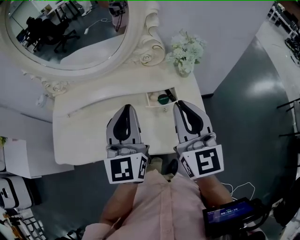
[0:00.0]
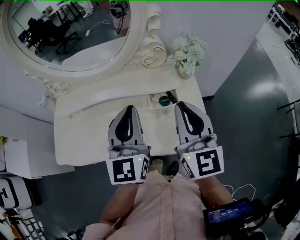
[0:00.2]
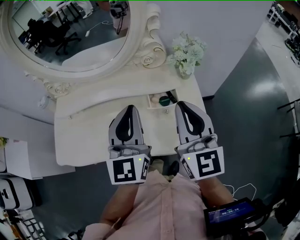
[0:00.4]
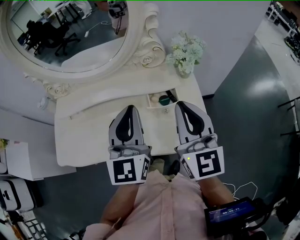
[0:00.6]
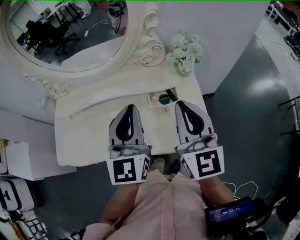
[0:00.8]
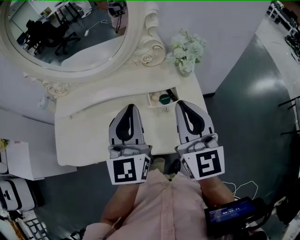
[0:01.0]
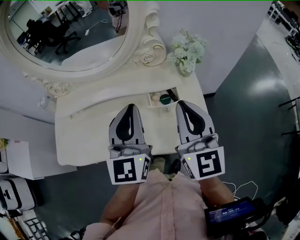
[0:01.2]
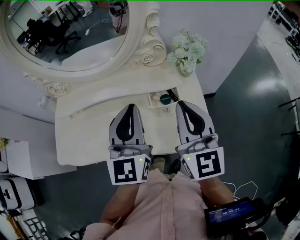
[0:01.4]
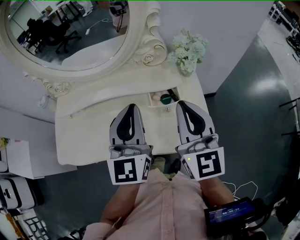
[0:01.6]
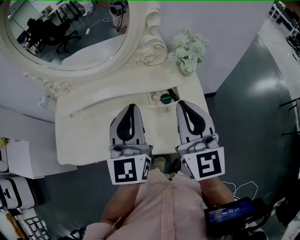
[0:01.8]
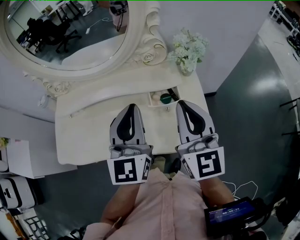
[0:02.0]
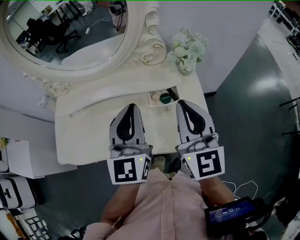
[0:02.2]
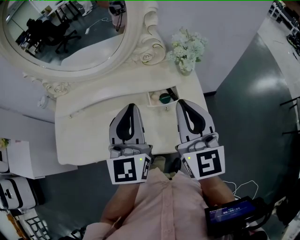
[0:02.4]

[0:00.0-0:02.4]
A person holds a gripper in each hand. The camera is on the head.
0:00.0 to 0:01.2: There are only small adjustments of the grippers.
0:01.2 to 0:02.4: The two grippers keep their place.

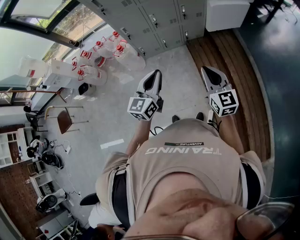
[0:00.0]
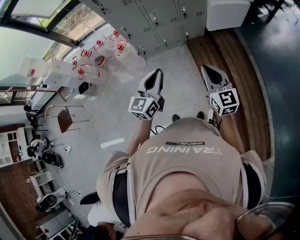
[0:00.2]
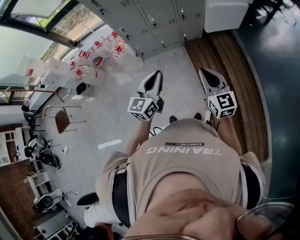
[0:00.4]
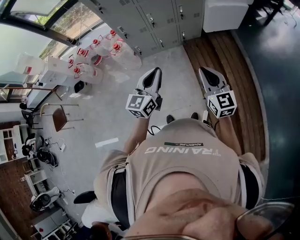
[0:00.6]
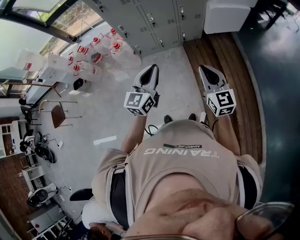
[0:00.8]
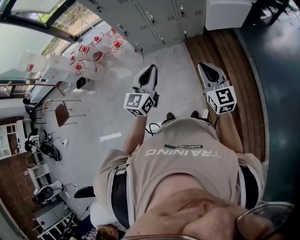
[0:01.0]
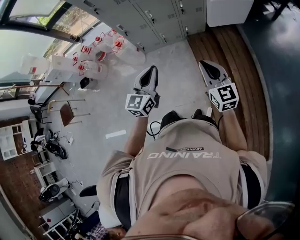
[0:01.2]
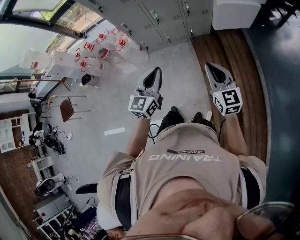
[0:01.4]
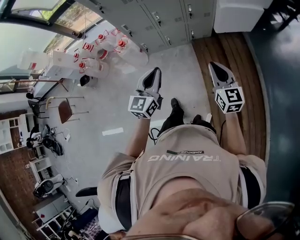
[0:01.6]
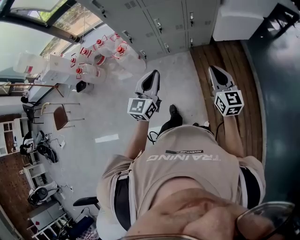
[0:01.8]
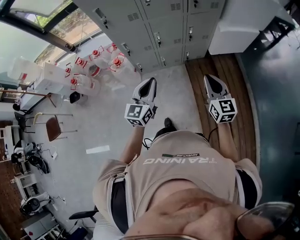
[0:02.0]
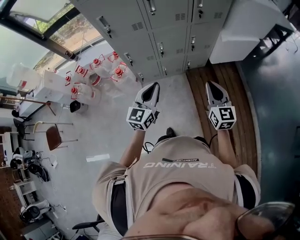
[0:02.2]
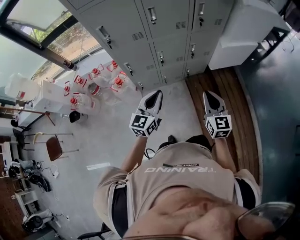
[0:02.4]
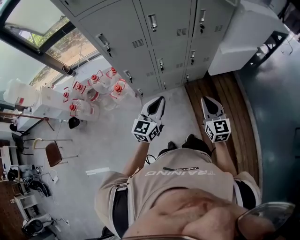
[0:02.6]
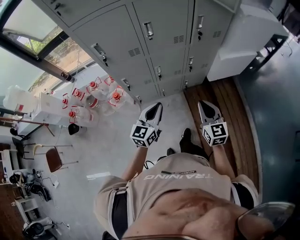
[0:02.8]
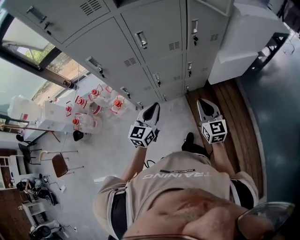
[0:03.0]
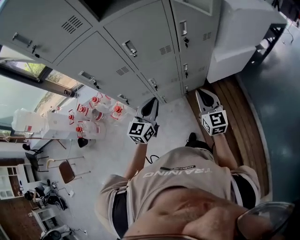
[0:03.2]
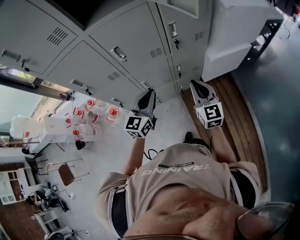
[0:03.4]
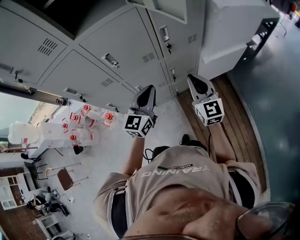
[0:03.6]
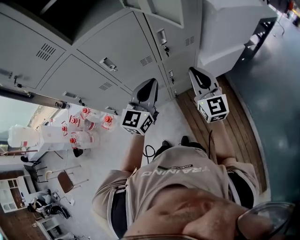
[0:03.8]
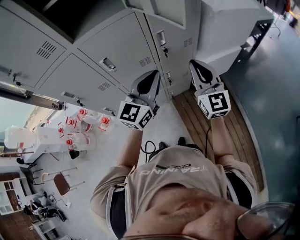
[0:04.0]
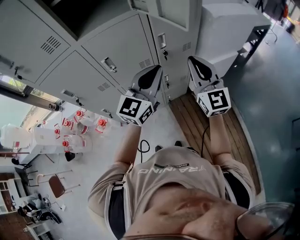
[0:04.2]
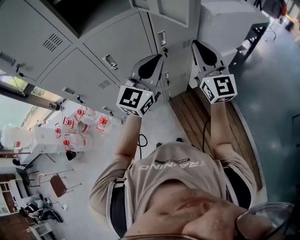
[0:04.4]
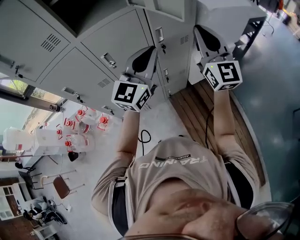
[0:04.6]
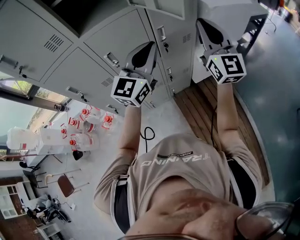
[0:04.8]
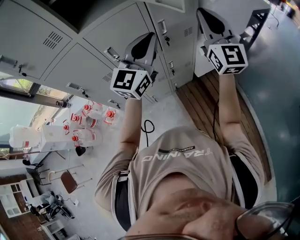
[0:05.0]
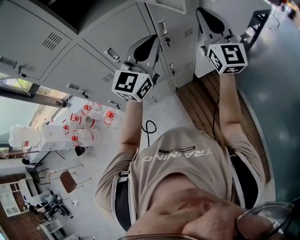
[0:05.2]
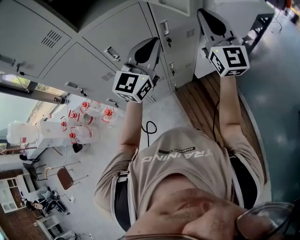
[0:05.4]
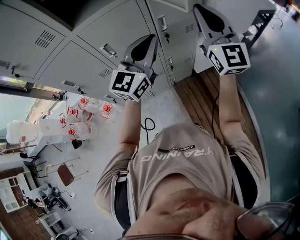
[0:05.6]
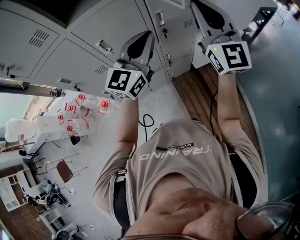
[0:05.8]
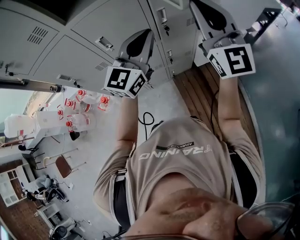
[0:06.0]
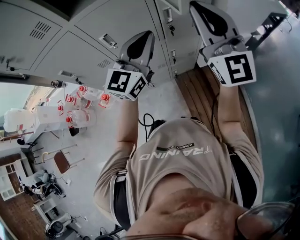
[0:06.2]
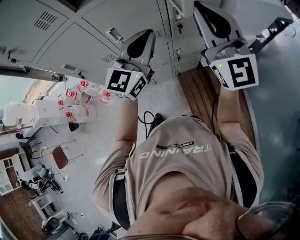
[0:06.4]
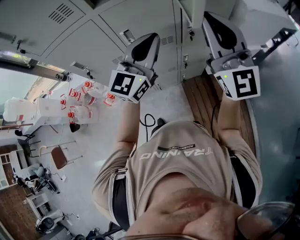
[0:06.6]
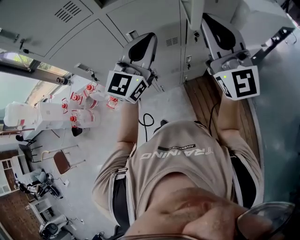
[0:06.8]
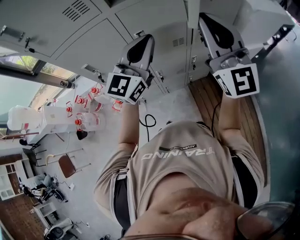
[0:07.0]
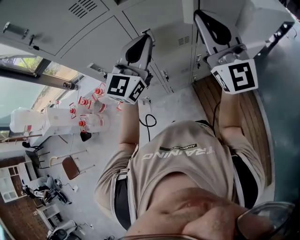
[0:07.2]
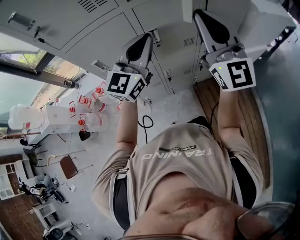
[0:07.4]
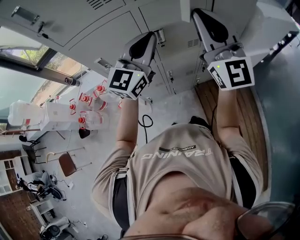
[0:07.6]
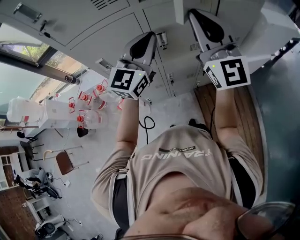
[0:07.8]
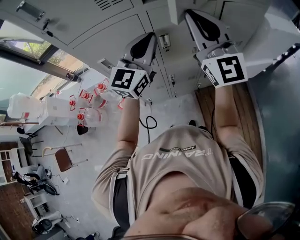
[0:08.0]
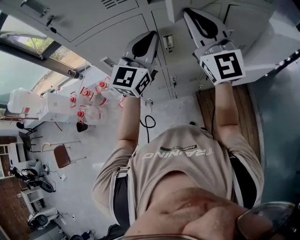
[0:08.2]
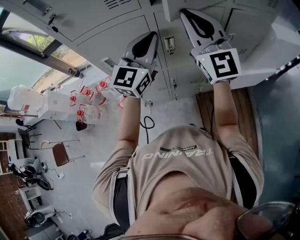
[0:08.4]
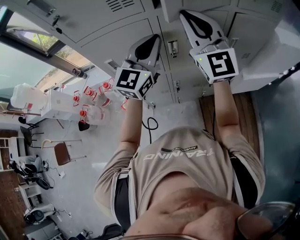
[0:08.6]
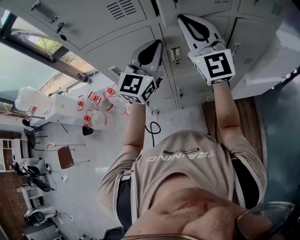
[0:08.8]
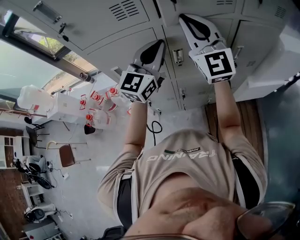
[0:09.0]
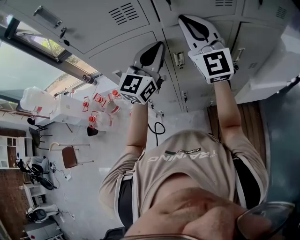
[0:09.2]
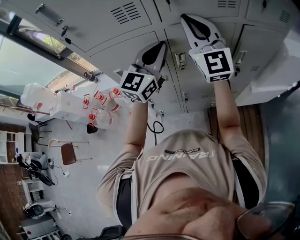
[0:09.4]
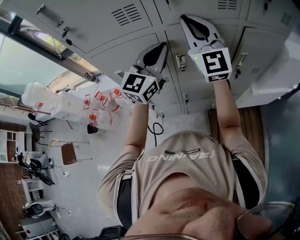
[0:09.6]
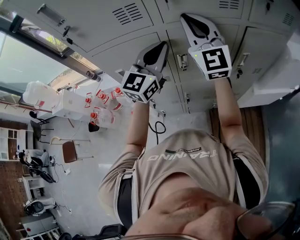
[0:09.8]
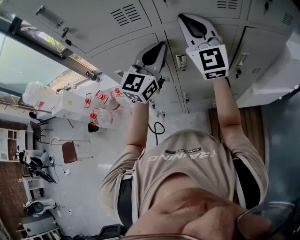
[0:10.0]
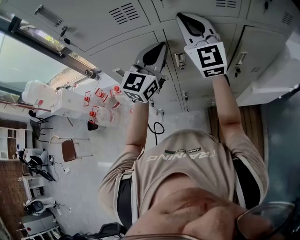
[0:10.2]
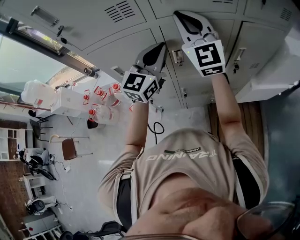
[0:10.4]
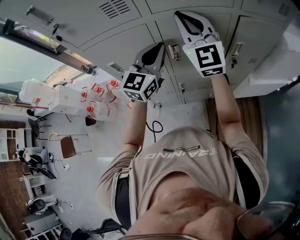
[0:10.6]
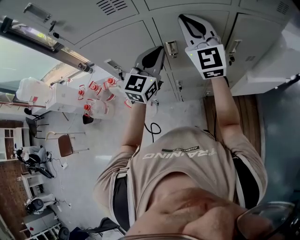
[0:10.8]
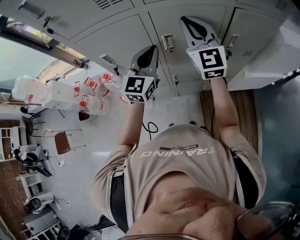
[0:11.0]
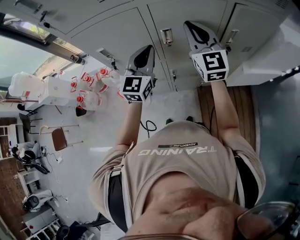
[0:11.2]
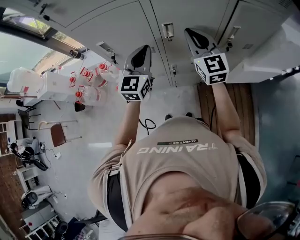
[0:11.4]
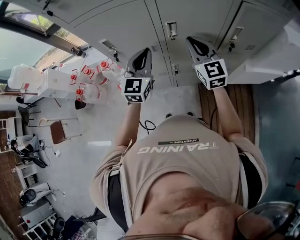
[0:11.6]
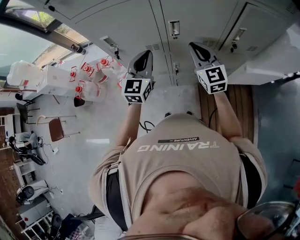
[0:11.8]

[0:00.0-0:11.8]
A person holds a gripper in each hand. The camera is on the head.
0:00.0 to 0:01.4: The left gripper shifts some 5 cm to the right. The right gripper travels to the right and forward by approximately 10 cm.
0:01.4 to 0:03.0: The two grippers go some 30 cm forward.
0:03.0 to 0:04.4: The left gripper is displaced upward, forward and to the right by approximately 35 cm, and rotates about 30 degrees. Meanwhile the right gripper goes roughly 30 cm upward and forward, and swivels approximately 30 degrees.
0:04.4 to 0:06.0: The right gripper is displaced upward by some 5 cm.
0:06.0 to 0:07.4: The grippers both shift to the left by about 20 cm.
0:07.4 to 0:08.8: The right gripper heads forward and to the left, covering about 15 cm; the left gripper travels forward by some 5 cm.
0:08.8 to 0:10.4: The right gripper moves forward, approximately 5 cm.
0:10.4 to 0:11.8: The left gripper goes some 15 cm downward, to the left and backward; the right gripper moves downward, roughly 25 cm, and turns by roughly 30 degrees.

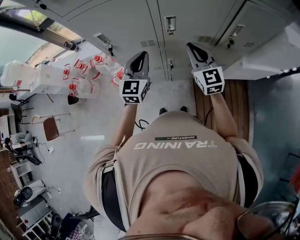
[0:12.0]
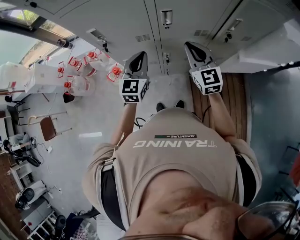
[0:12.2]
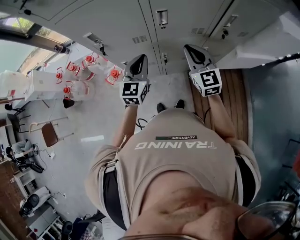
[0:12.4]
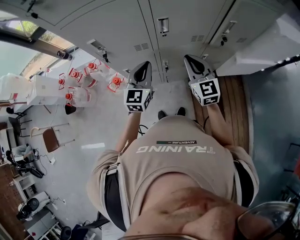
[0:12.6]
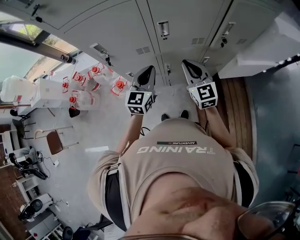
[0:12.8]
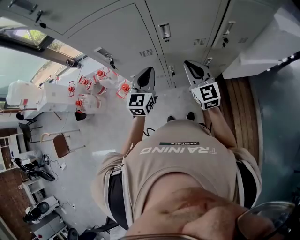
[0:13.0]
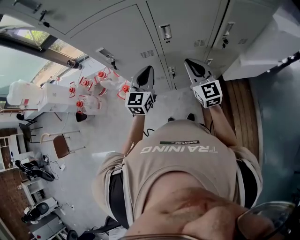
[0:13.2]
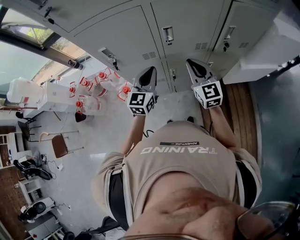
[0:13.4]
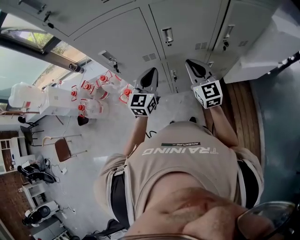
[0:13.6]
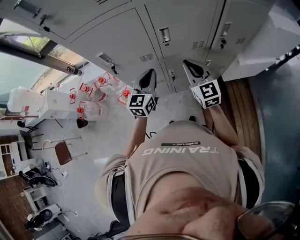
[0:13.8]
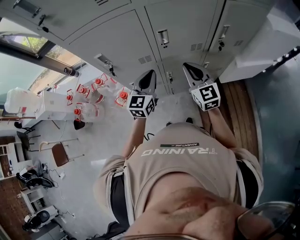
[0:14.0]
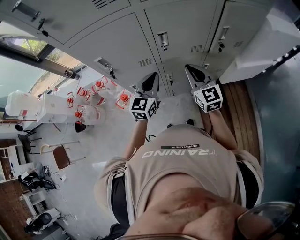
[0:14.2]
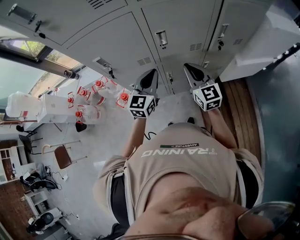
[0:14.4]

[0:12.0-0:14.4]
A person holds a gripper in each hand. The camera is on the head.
0:12.0 to 0:14.4: There are only small adjustments of the grippers.

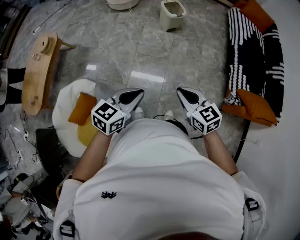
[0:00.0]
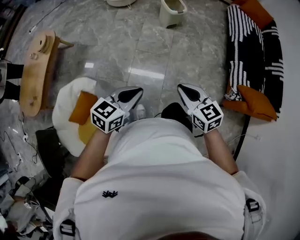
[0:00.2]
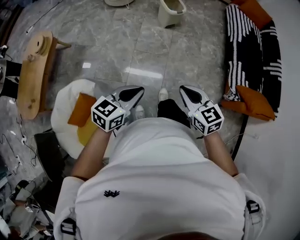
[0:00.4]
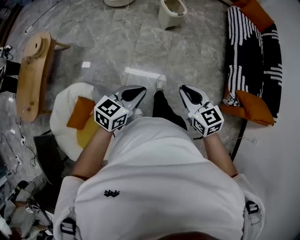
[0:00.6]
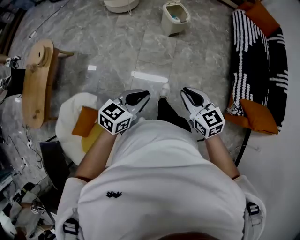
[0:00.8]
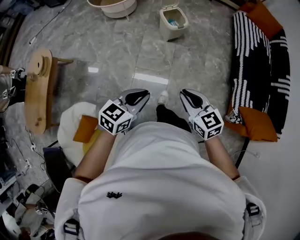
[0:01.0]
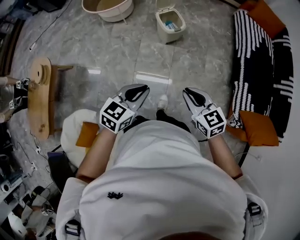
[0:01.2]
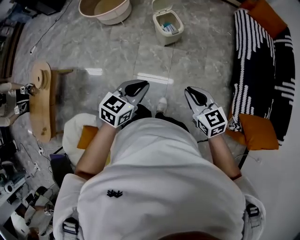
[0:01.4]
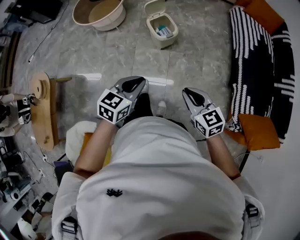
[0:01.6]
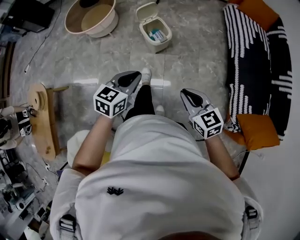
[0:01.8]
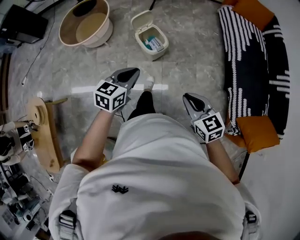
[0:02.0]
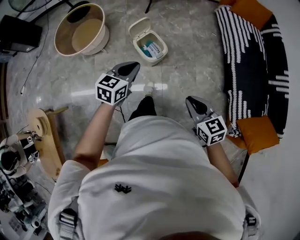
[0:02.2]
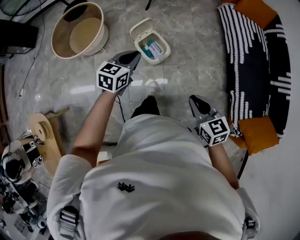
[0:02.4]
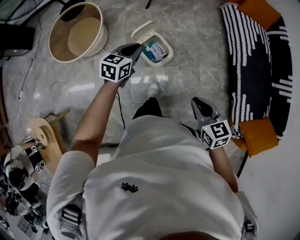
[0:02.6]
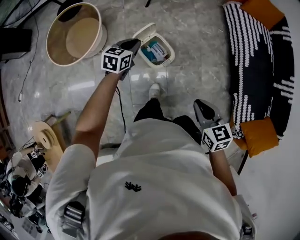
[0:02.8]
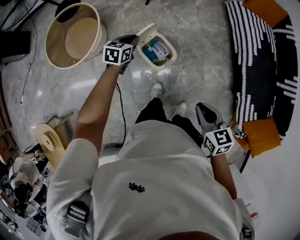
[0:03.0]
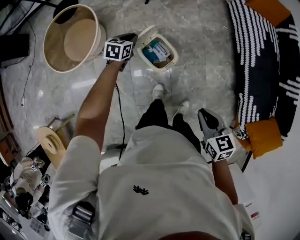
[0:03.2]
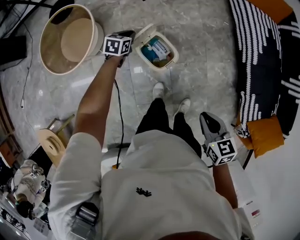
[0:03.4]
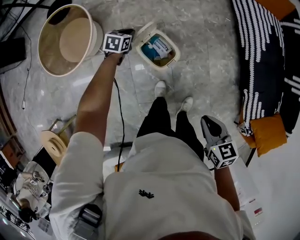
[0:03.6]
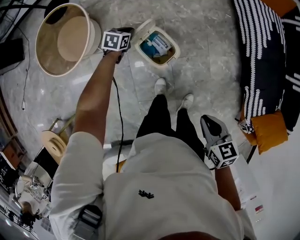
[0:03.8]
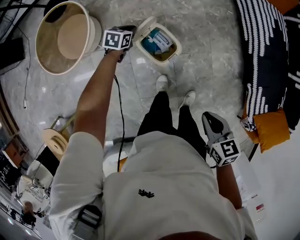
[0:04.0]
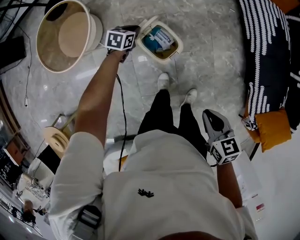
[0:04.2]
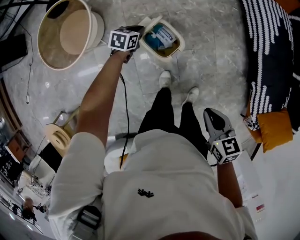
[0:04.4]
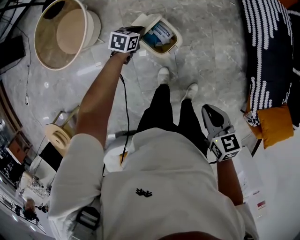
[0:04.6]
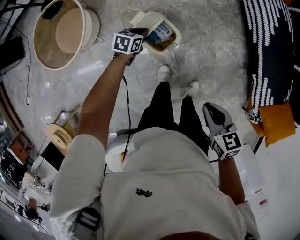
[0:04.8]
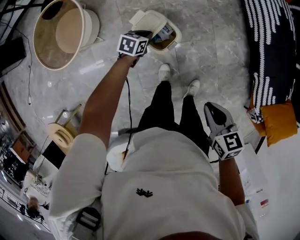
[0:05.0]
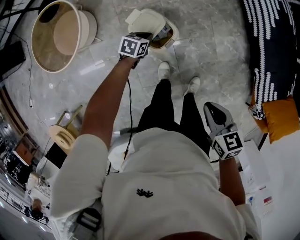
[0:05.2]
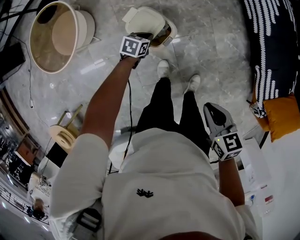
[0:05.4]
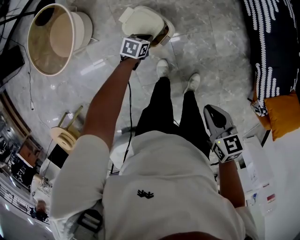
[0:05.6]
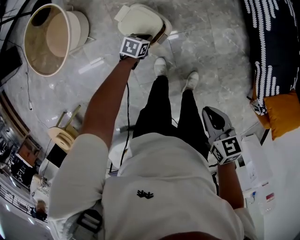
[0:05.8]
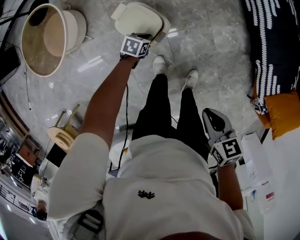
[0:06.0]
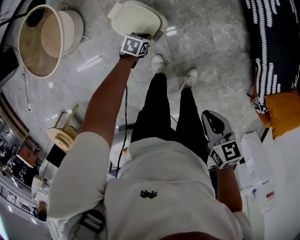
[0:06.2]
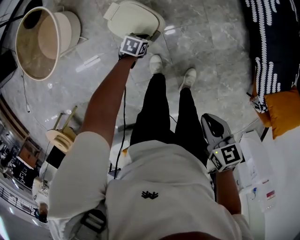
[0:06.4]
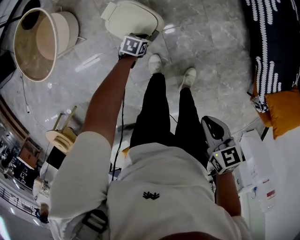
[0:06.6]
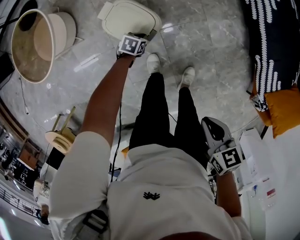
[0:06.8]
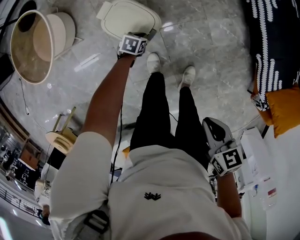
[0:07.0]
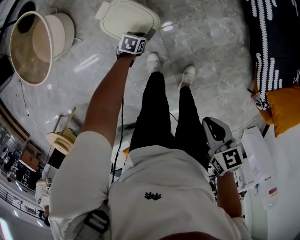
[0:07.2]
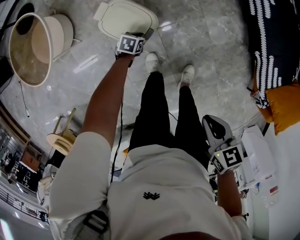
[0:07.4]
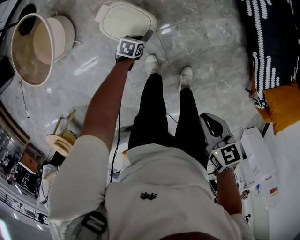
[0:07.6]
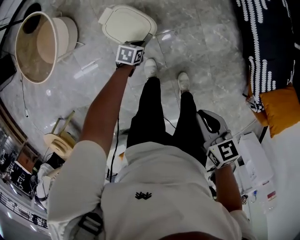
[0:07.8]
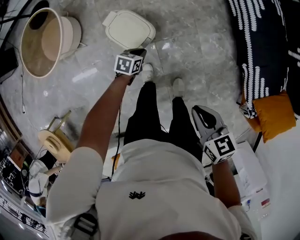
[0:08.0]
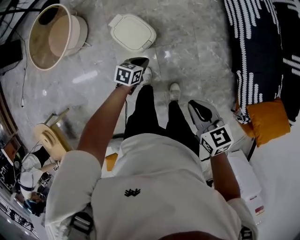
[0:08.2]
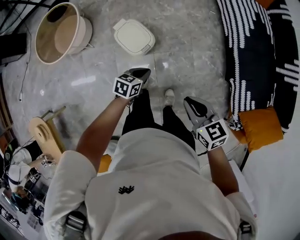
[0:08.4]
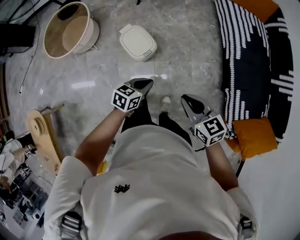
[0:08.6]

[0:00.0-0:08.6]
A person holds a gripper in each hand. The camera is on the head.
0:00.0 to 0:01.4: Both grippers travel together forward, some 40 cm.
0:01.4 to 0:02.8: The right gripper moves forward, about 35 cm, and turns by roughly 30 degrees, while the left gripper shifts about 60 cm forward.
0:02.8 to 0:04.4: The right gripper is displaced downward by approximately 10 cm. Meanwhile the left gripper moves downward and forward, roughly 20 cm.
0:04.4 to 0:05.8: The right gripper heads to the right, covering roughly 5 cm. The left gripper travels to the right, downward and backward by some 20 cm.
0:05.8 to 0:07.2: The left gripper is displaced downward by some 10 cm. The right gripper moves about 5 cm.
0:07.2 to 0:08.6: The left gripper heads upward and backward, covering about 40 cm, and changes its angle by approximately 30 degrees; the right gripper is displaced upward by some 15 cm, and turns by roughly 40 degrees.
